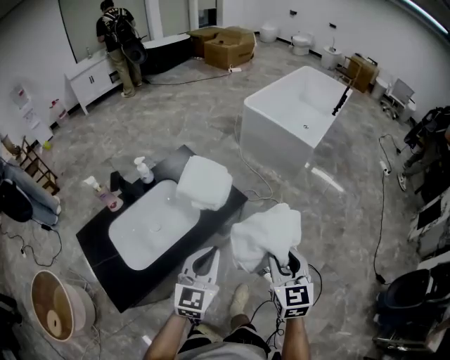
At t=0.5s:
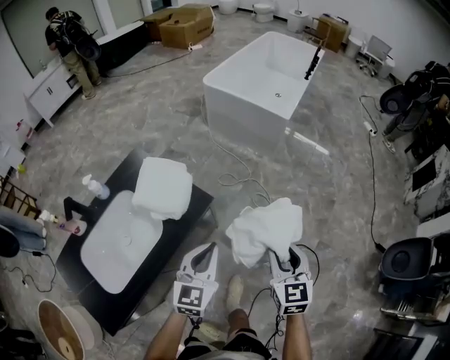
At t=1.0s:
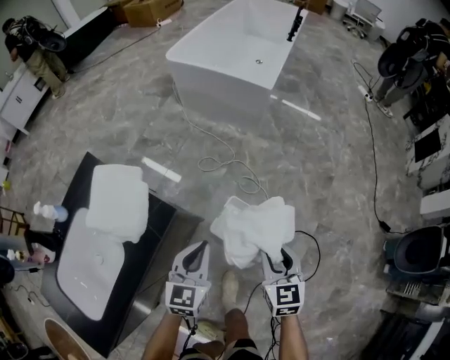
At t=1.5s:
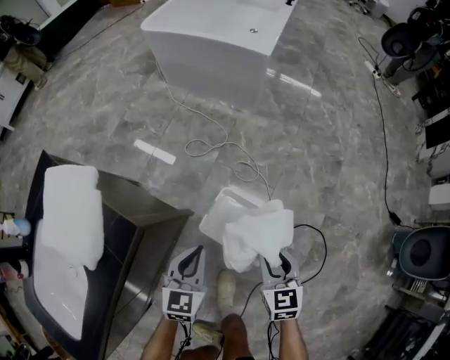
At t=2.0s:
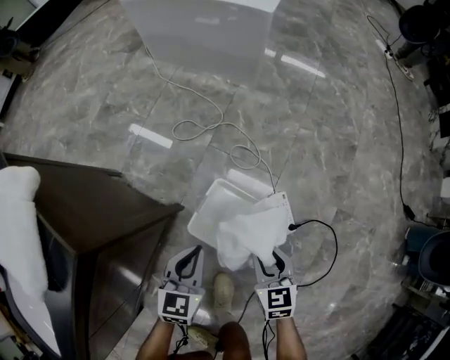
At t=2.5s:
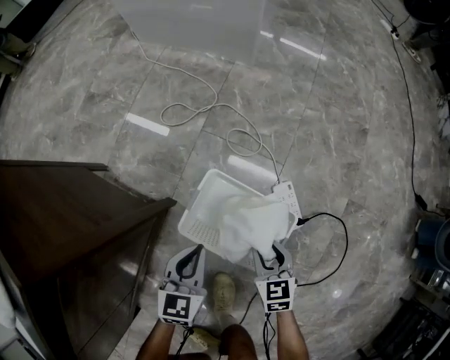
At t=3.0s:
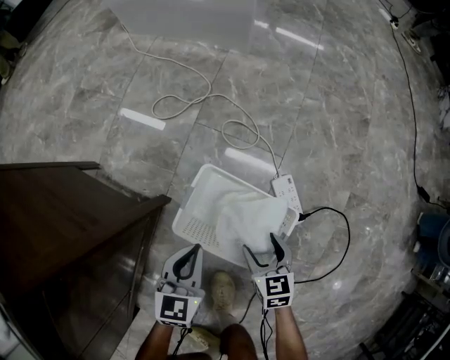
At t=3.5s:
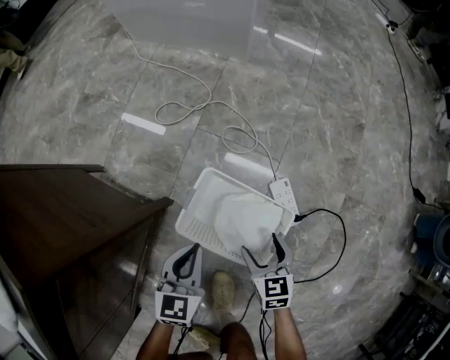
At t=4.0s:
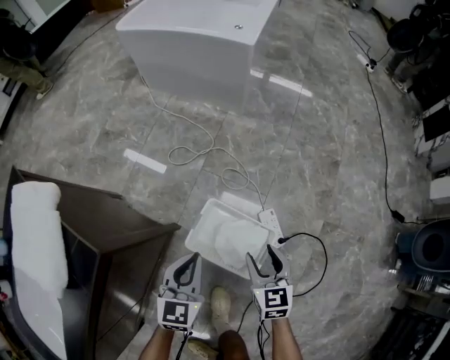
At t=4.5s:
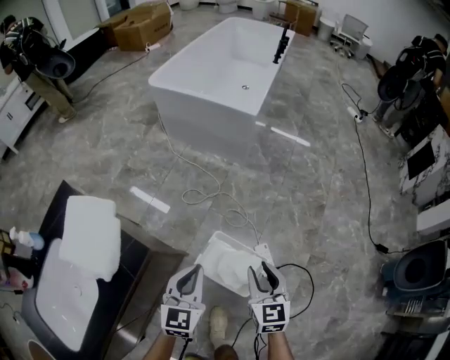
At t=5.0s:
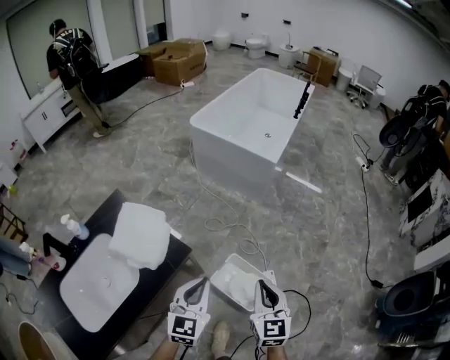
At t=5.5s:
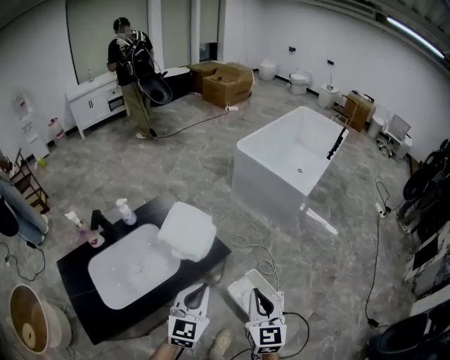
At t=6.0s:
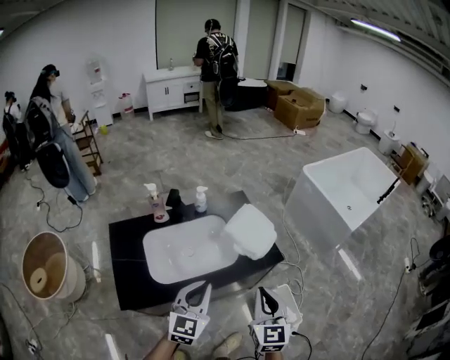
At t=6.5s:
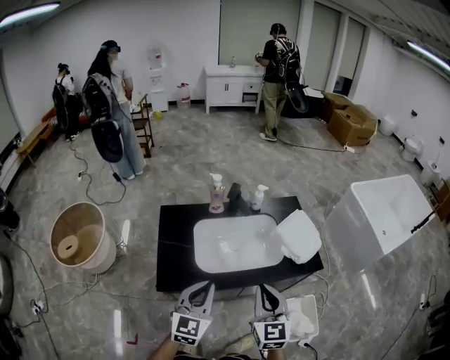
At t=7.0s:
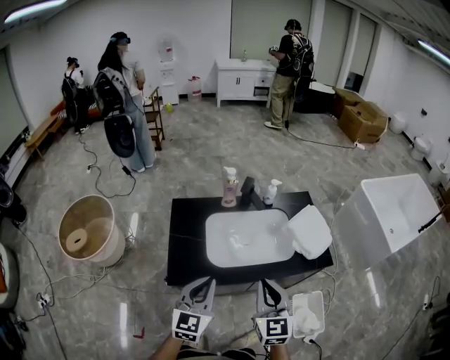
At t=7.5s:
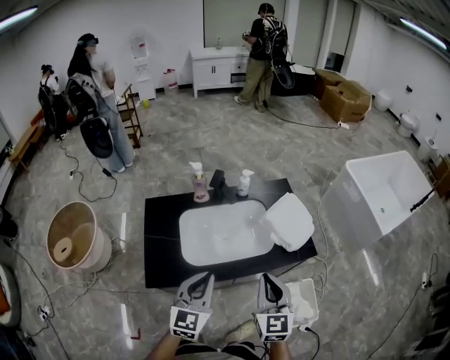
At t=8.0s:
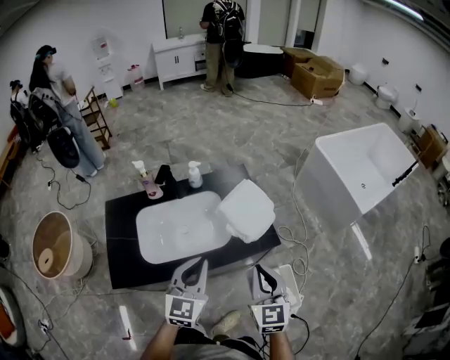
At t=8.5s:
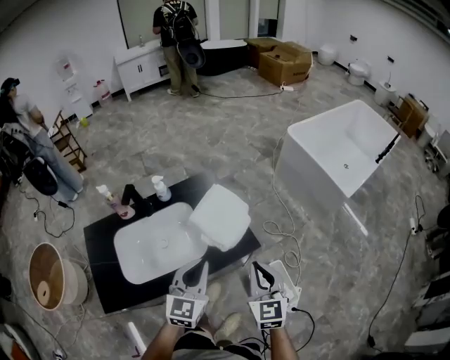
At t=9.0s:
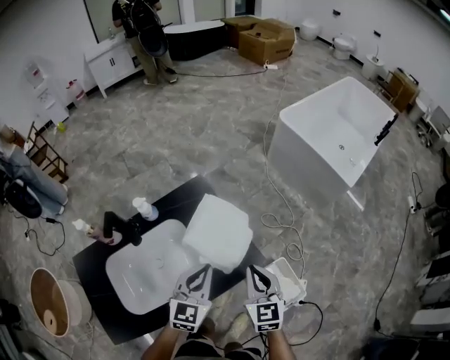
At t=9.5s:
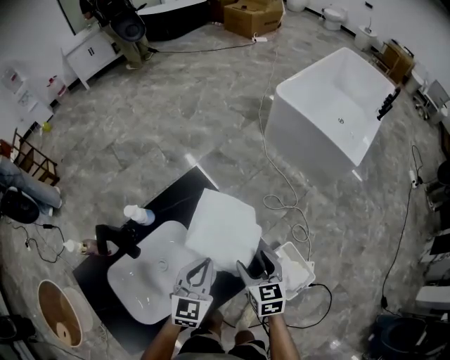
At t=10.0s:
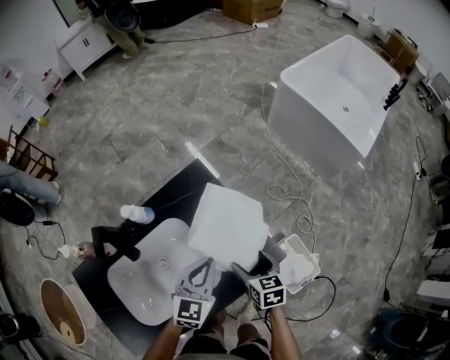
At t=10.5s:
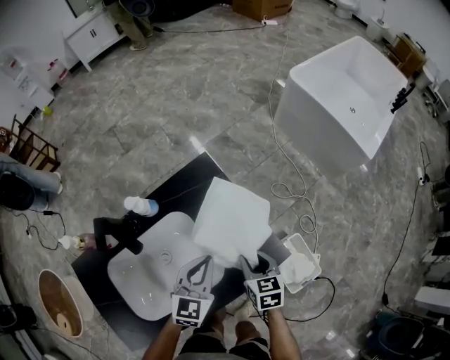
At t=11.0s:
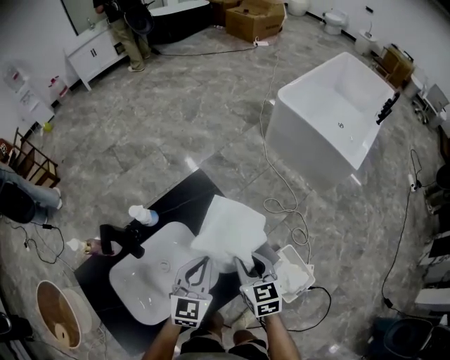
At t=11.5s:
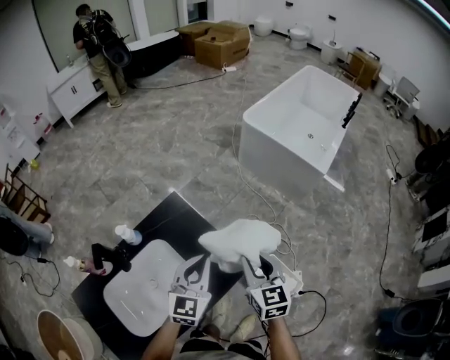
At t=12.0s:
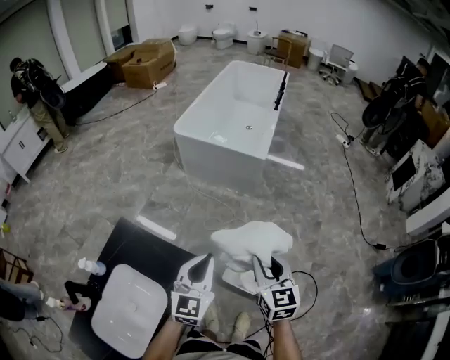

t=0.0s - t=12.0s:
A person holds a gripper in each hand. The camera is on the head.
t=0.0s - t=2.0s: The right gripper shifts about 60 cm downward, and changes its angle by about 30 degrees; the left gripper shifts roughly 60 cm downward and forward, and rotates about 30 degrees.
t=2.0s - t=4.0s: The left gripper heads upward, covering some 10 cm. The right gripper reaches roughly 20 cm downward, then returns, and opens and closes again.
t=4.0s - t=6.0s: Both grippers are carried approximately 50 cm. The left gripper changes its angle by some 40 degrees. The right gripper shifts some 60 cm upward, turns by roughly 50 degrees, and closes its fingers.
t=6.0s - t=8.0s: The right gripper moves forward, about 5 cm, and moves some 20 cm to the left and comes back; the left gripper goes to the left and returns, approximately 20 cm each way.
t=8.0s - t=10.0s: The left gripper goes some 35 cm forward and downward, and swivels approximately 30 degrees; the right gripper goes some 35 cm downward and forward, angles its fingers downward, by about 30 degrees, and opens.
t=10.0s - t=12.0s: The left gripper changes place by about 30 cm, and changes its angle by about 30 degrees. The right gripper shifts by some 40 cm, swivels some 50 degrees, and closes up.

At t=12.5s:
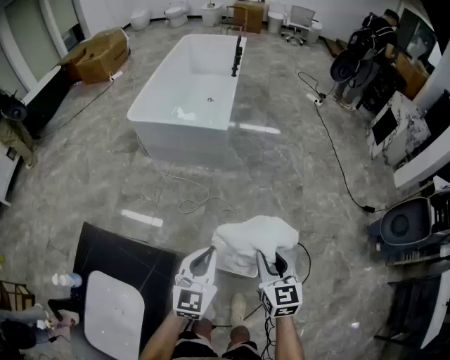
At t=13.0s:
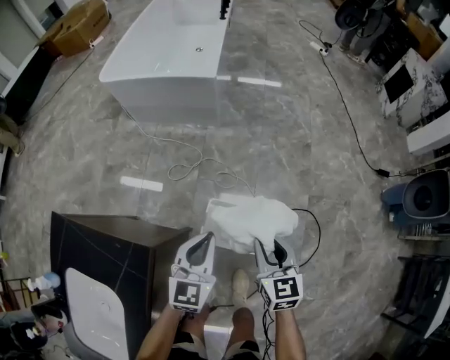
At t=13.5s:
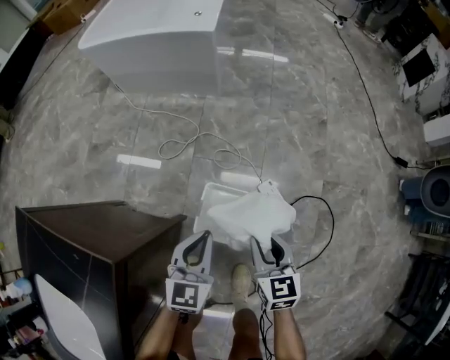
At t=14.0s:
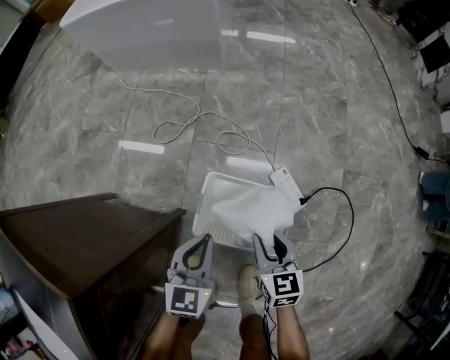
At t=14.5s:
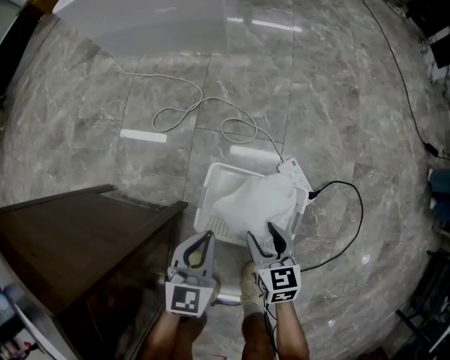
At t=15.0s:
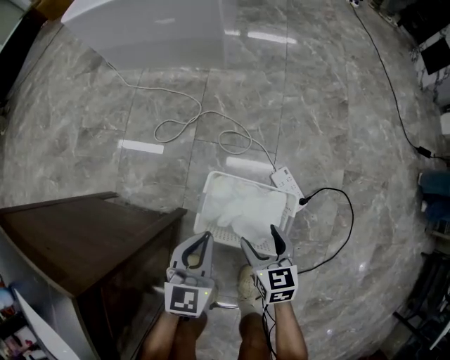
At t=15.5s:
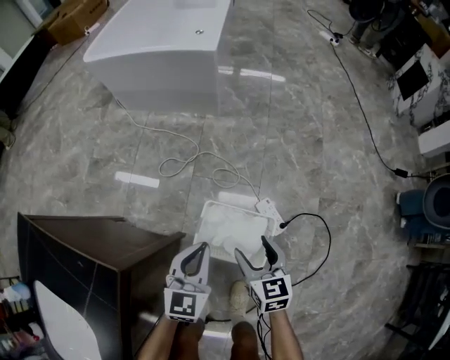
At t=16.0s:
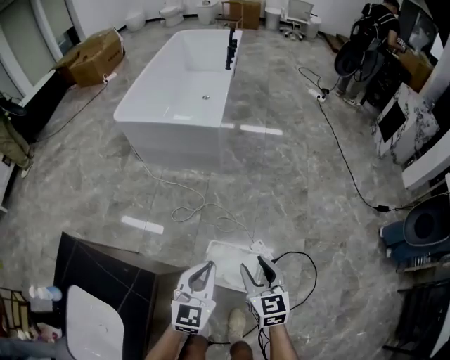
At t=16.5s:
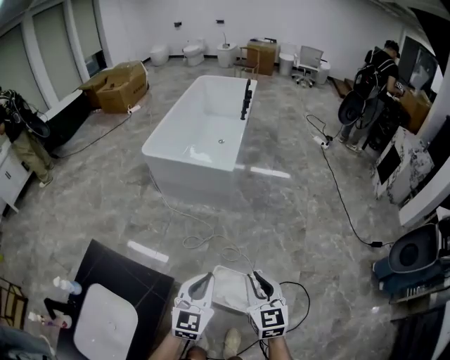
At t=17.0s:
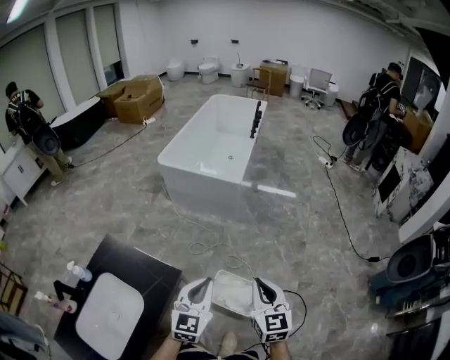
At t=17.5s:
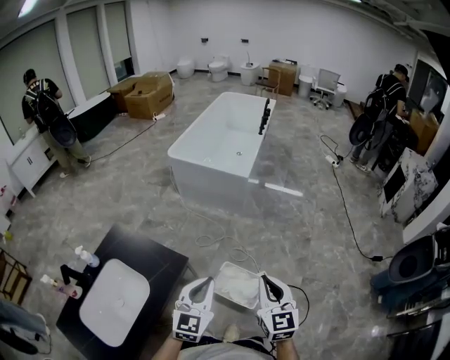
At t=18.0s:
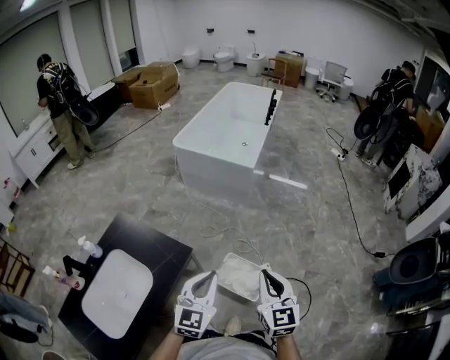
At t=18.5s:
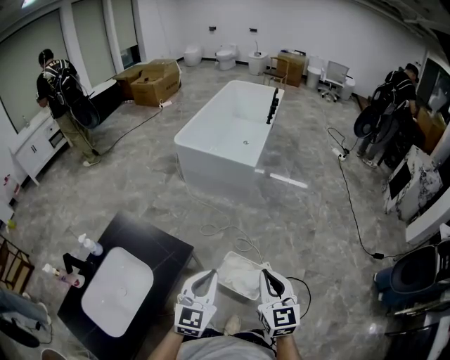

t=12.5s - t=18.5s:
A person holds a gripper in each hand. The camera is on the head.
t=12.5s - t=14.5s: Both grippers travel together downward, roughly 60 cm. The left gripper swivels about 20 degrees. The right gripper swivels roughly 20 degrees.
t=14.5s - t=16.5s: The two grippers go about 60 cm upward. The left gripper rotates roughly 20 degrees, while the right gripper changes its angle by approximately 30 degrees, and closes up.
t=16.5s - t=18.5s: Both grippers travel together backward and upward, approximately 15 cm.

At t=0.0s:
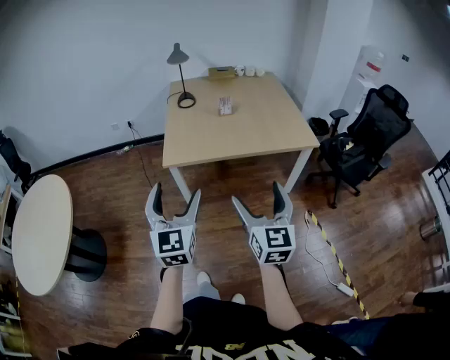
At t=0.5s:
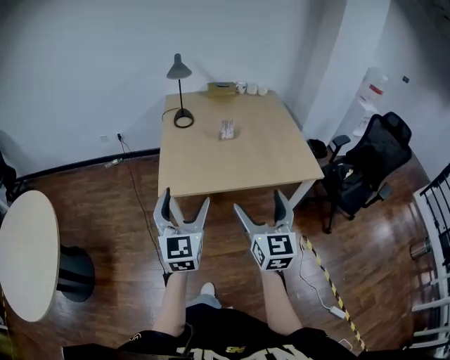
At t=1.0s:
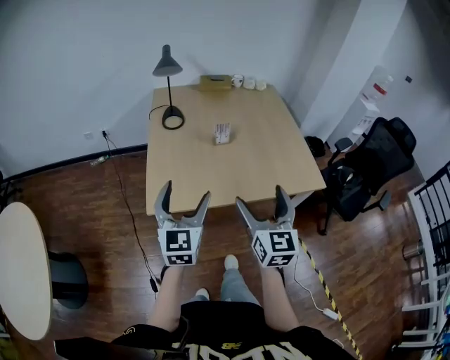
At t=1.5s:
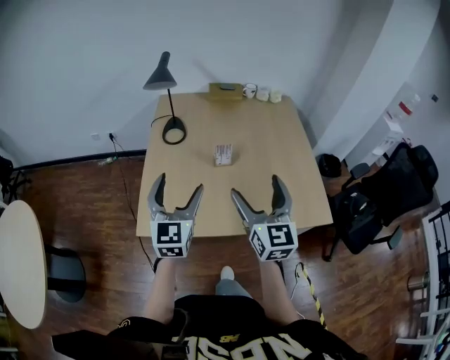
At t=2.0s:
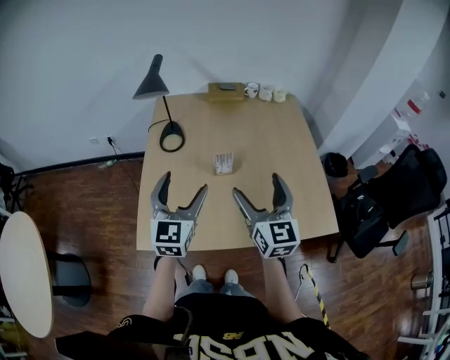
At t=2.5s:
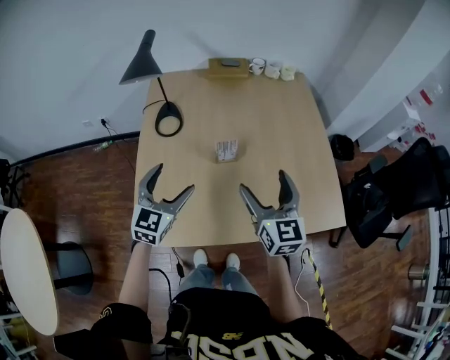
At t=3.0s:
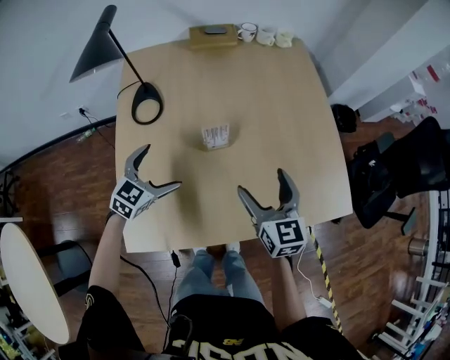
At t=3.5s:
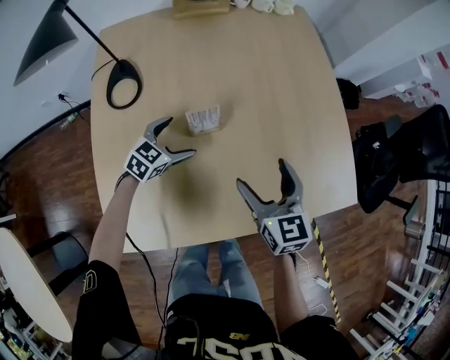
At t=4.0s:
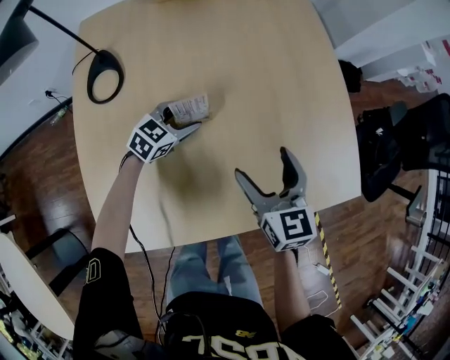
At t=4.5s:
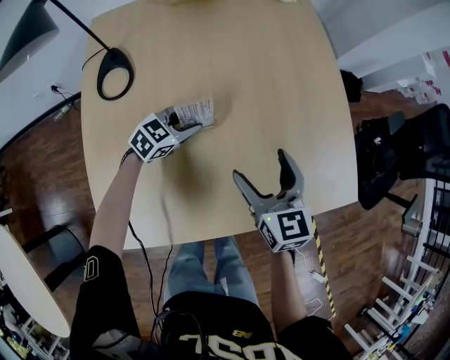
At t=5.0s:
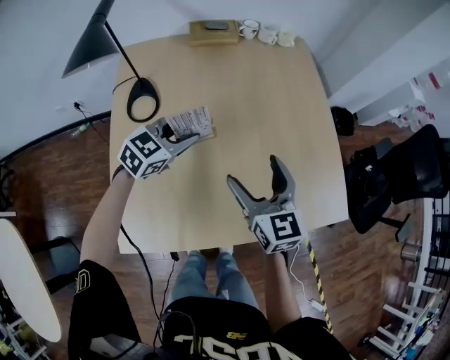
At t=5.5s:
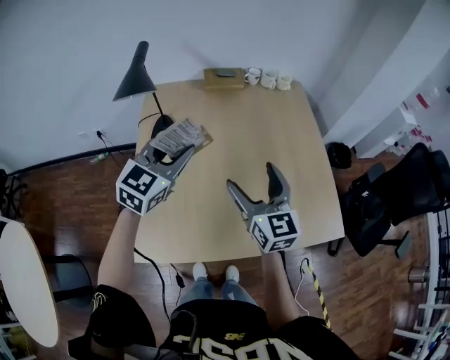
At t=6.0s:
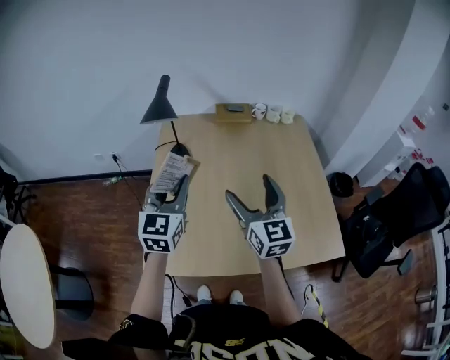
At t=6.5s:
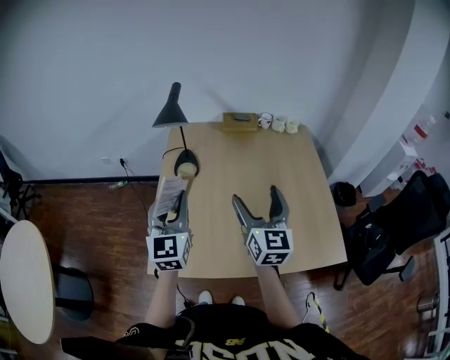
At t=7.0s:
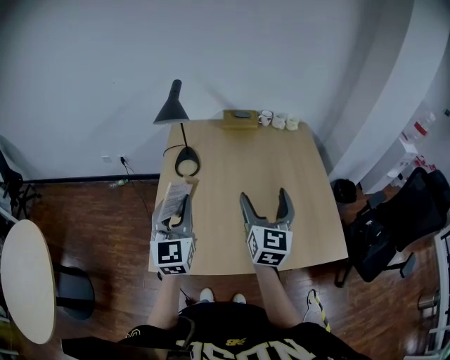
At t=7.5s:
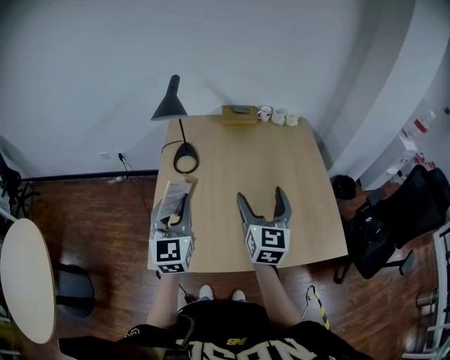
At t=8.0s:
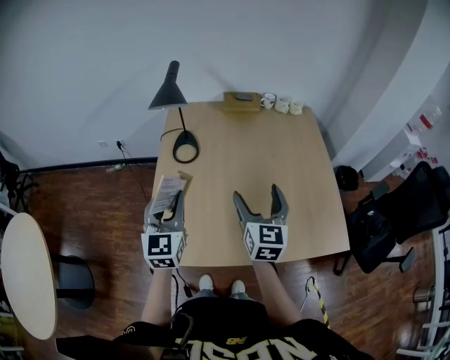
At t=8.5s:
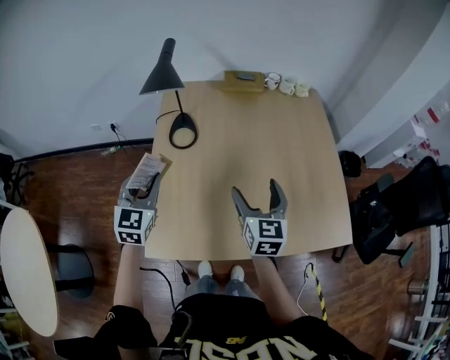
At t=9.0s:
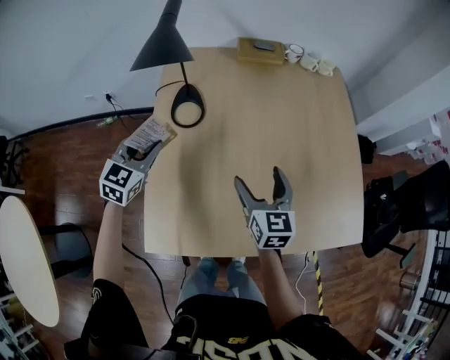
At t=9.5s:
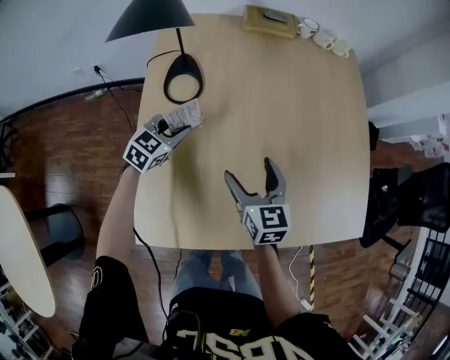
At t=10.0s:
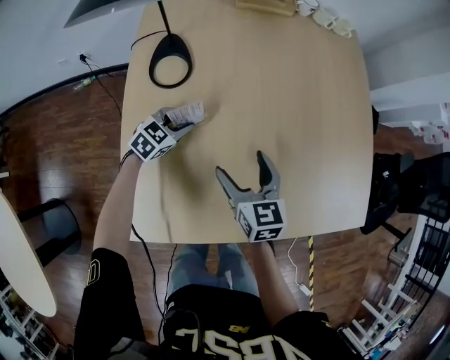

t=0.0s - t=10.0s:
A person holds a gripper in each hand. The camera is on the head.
t=0.0s - t=2.0s: Both grippers are carried forward, approximately 60 cm.
t=2.0s - t=4.0s: The right gripper shifts about 25 cm downward, and swivels about 20 degrees; the left gripper shifts some 35 cm downward, and tips its fingers downward by approximately 30 degrees.
t=4.0s - t=6.0s: The right gripper moves upward, approximately 25 cm, and rotates approximately 30 degrees. Meanwhile the left gripper goes about 40 cm upward, and angles its fingers upward, by about 30 degrees.
t=6.0s - t=8.0s: The right gripper heads downward, covering roughly 5 cm. Meanwhile the left gripper travels downward and backward by roughly 10 cm.
t=8.0s - t=10.0s: The right gripper goes approximately 25 cm downward and to the left, and turns by about 20 degrees. The left gripper moves downward and forward, about 40 cm, and angles its fingers downward, by approximately 30 degrees.
